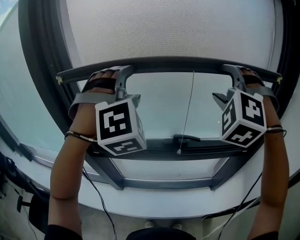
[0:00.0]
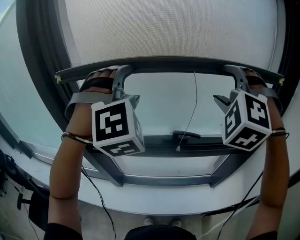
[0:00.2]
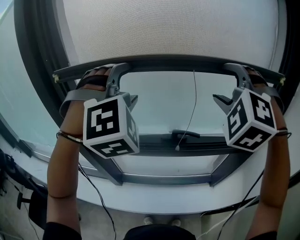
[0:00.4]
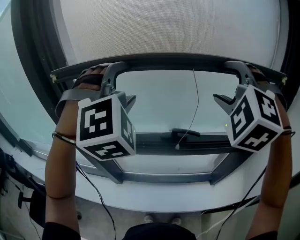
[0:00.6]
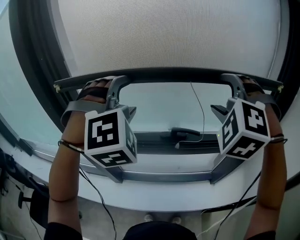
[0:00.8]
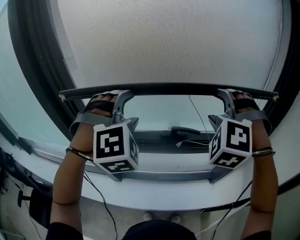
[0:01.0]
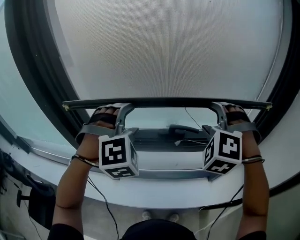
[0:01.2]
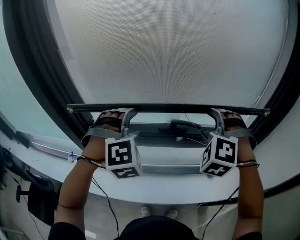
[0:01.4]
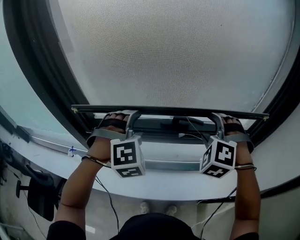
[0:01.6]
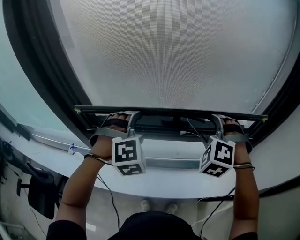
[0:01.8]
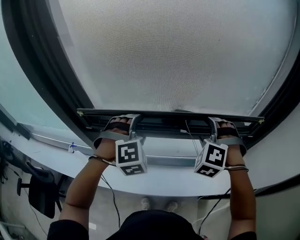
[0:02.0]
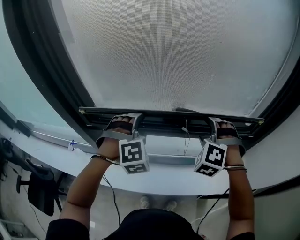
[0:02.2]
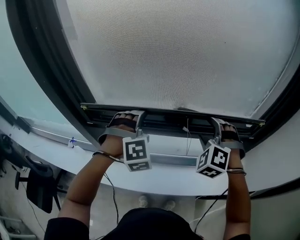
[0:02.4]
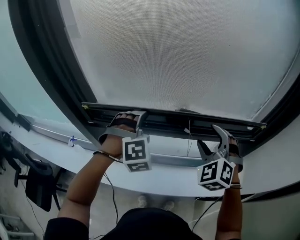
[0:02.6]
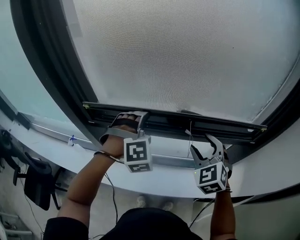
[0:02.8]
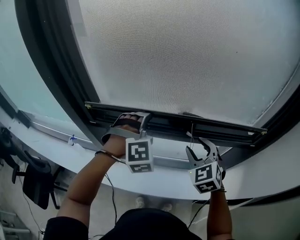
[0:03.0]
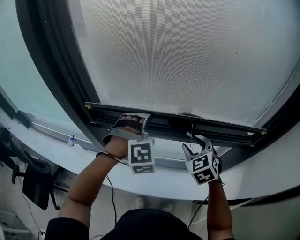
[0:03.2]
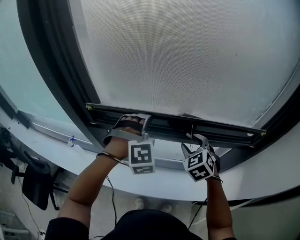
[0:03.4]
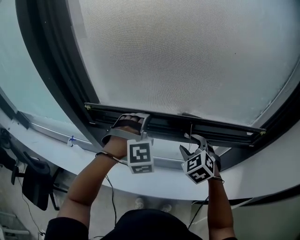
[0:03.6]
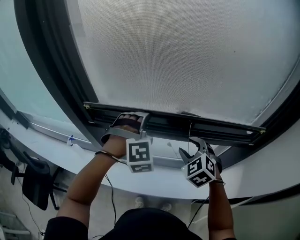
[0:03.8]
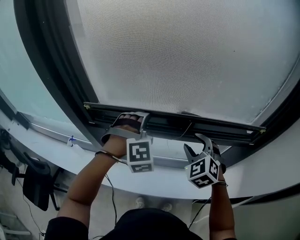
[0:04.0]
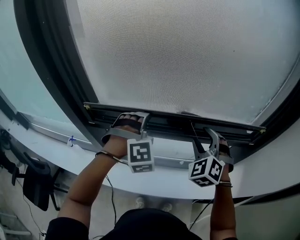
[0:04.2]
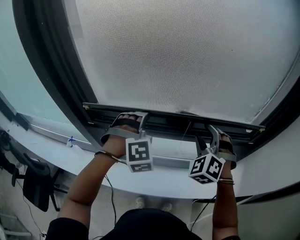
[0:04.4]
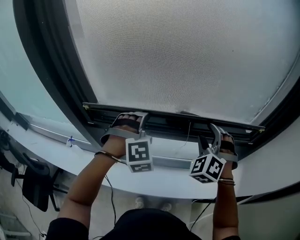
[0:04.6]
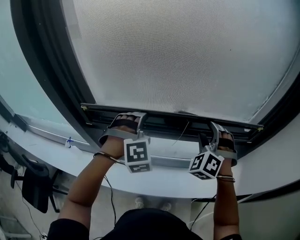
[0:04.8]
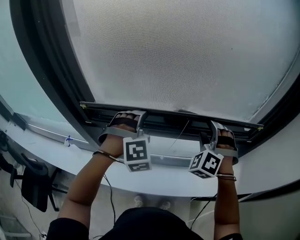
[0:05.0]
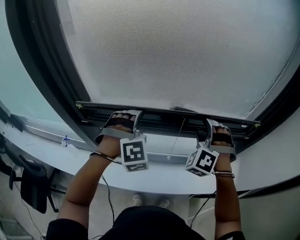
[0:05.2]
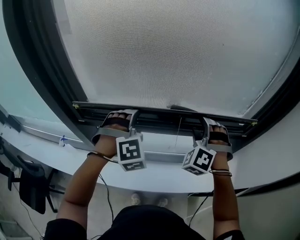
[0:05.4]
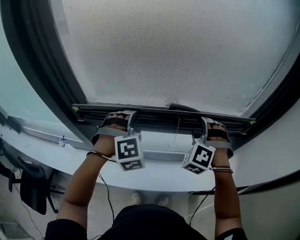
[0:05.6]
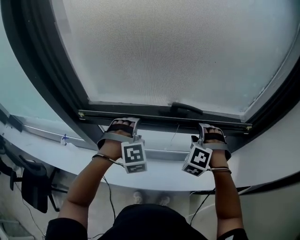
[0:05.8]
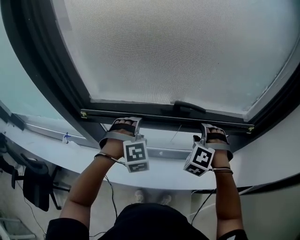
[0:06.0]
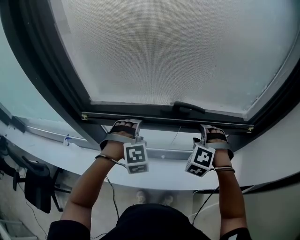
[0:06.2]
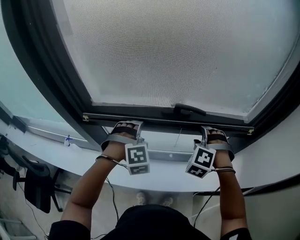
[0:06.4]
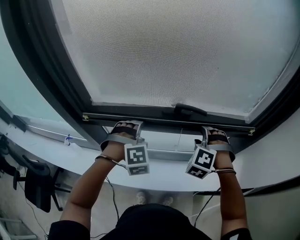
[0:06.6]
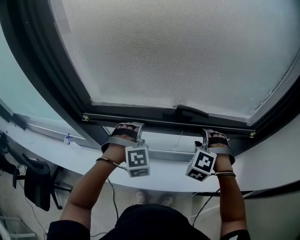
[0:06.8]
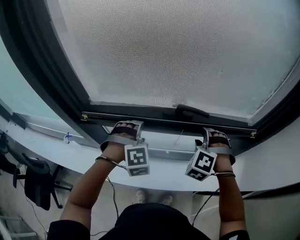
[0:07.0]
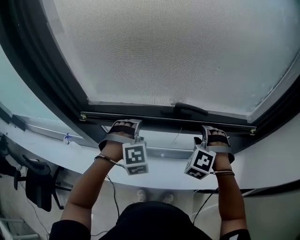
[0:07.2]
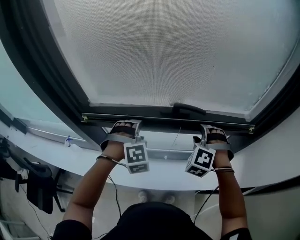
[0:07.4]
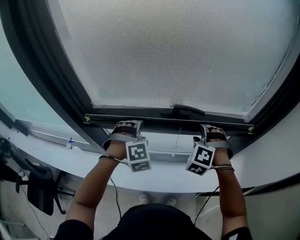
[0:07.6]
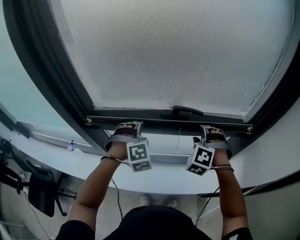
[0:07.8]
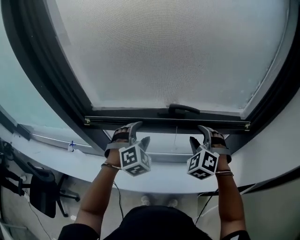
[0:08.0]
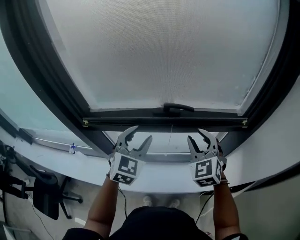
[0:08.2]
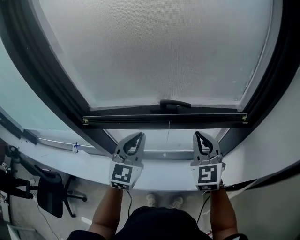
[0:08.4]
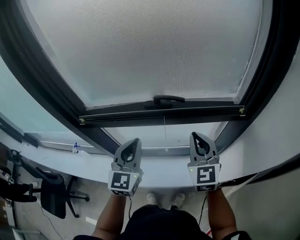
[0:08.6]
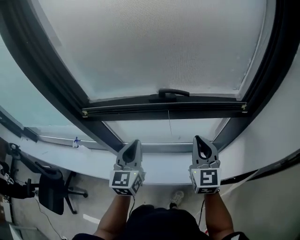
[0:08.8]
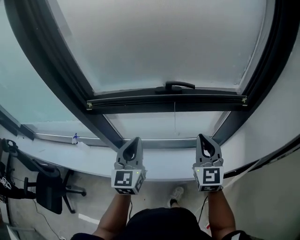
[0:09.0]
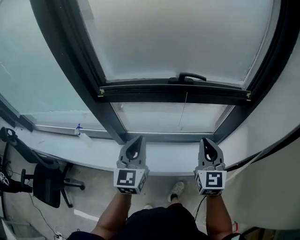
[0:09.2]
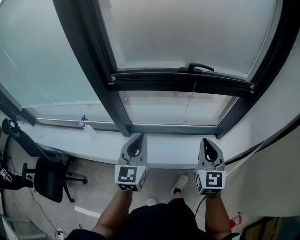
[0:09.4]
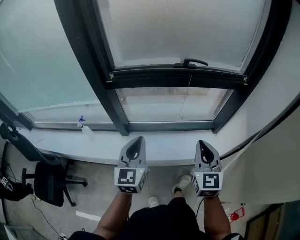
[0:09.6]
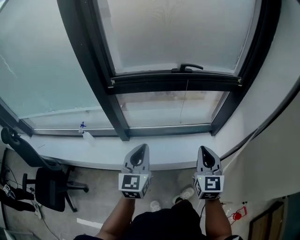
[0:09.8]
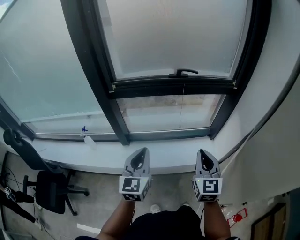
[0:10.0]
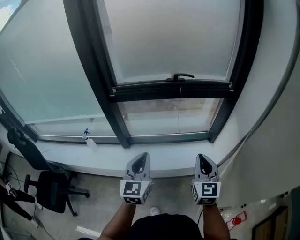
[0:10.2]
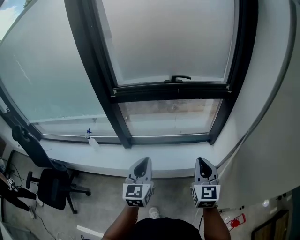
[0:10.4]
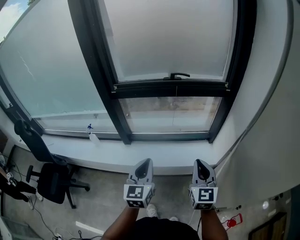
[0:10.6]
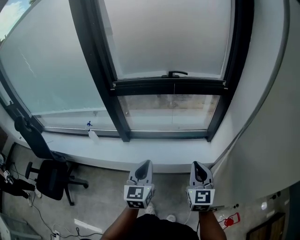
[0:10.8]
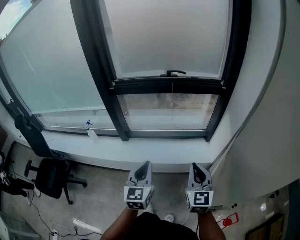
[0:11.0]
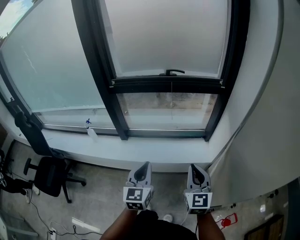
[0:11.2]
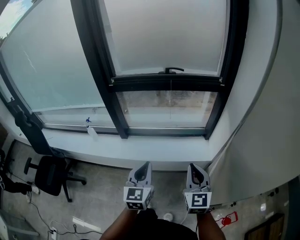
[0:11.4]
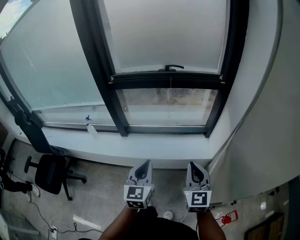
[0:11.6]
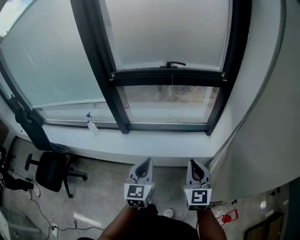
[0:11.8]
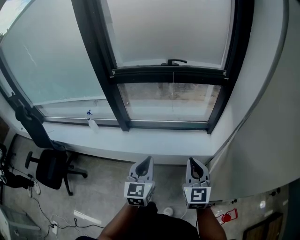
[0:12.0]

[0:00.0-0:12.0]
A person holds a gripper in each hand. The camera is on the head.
0:00.0 to 0:01.6: The grippers both shift downward by approximately 30 cm. The left gripper swivels approximately 30 degrees; the right gripper changes its angle by about 20 degrees.
0:01.6 to 0:03.0: The right gripper travels to the left by about 5 cm, and changes its angle by some 40 degrees.
0:03.0 to 0:04.4: The right gripper moves approximately 5 cm, and changes its angle by roughly 30 degrees.
0:04.4 to 0:06.0: Both grippers travel together downward, some 10 cm. The right gripper swivels roughly 20 degrees.
0:06.0 to 0:07.6: There are only small adjustments of the grippers.
0:07.6 to 0:09.0: Both grippers travel together backward, some 15 cm. The right gripper rotates around the line of its fingers by roughly 60 degrees, clockwise from behind, and closes its fingers, while the left gripper rotates around the line of its fingers by about 70 degrees, counterclockwise from behind, and closes its fingers.
0:09.0 to 0:10.4: The two grippers go approximately 30 cm backward.
0:10.4 to 0:12.0: The left gripper moves backward and to the right, about 10 cm, while the right gripper goes about 10 cm backward.

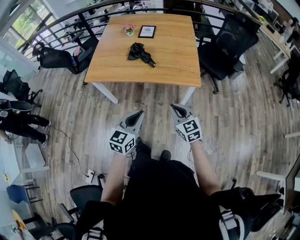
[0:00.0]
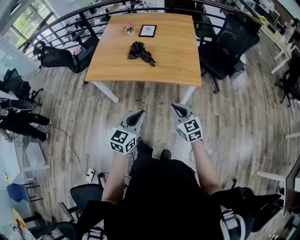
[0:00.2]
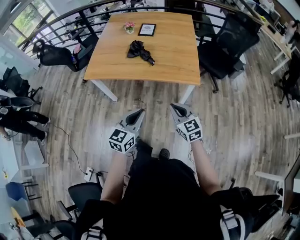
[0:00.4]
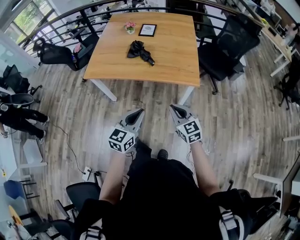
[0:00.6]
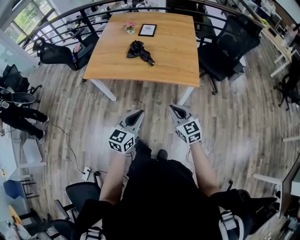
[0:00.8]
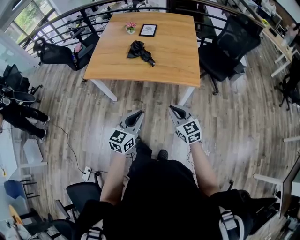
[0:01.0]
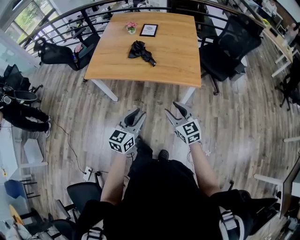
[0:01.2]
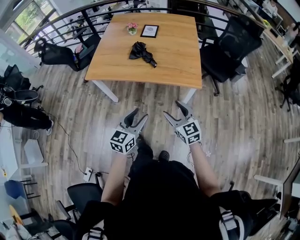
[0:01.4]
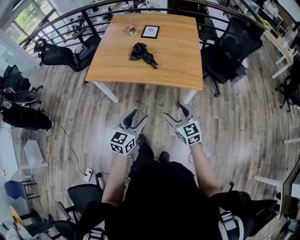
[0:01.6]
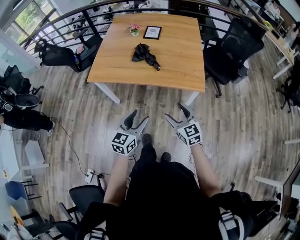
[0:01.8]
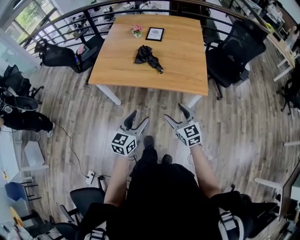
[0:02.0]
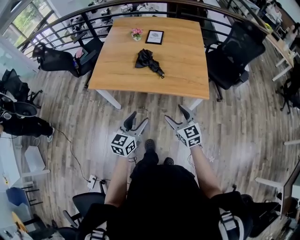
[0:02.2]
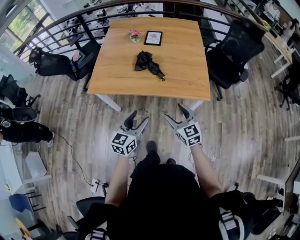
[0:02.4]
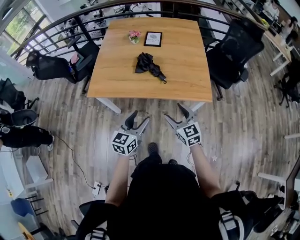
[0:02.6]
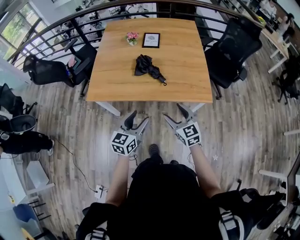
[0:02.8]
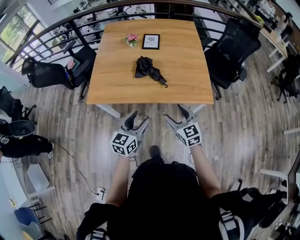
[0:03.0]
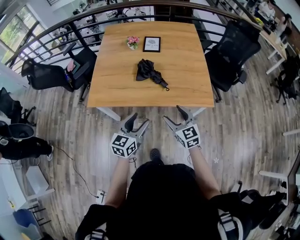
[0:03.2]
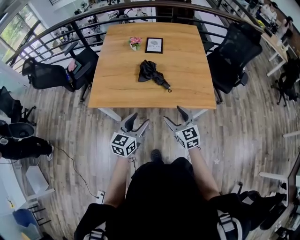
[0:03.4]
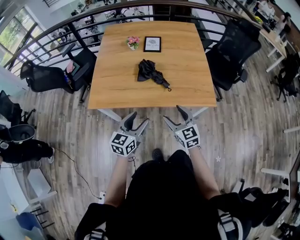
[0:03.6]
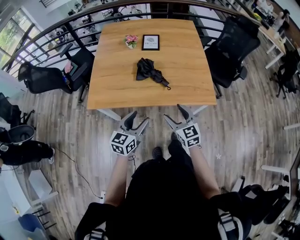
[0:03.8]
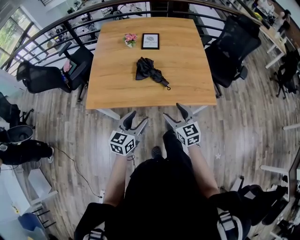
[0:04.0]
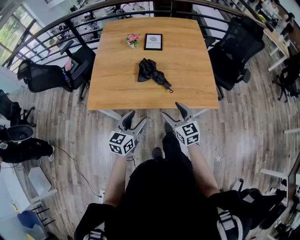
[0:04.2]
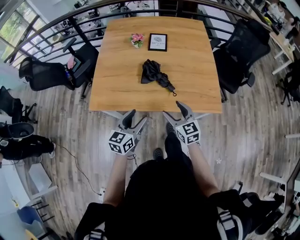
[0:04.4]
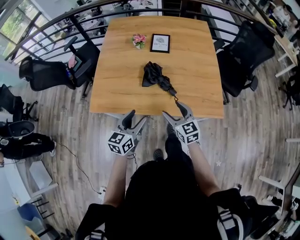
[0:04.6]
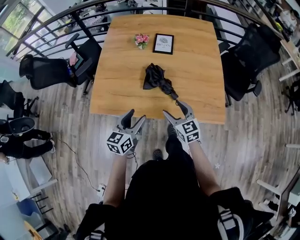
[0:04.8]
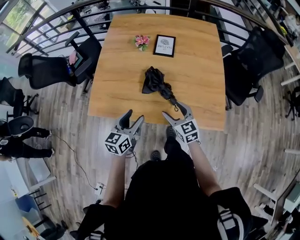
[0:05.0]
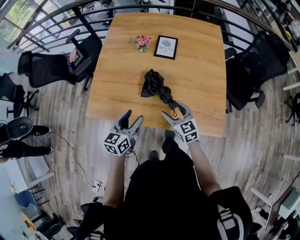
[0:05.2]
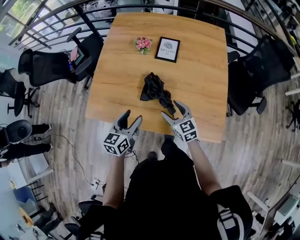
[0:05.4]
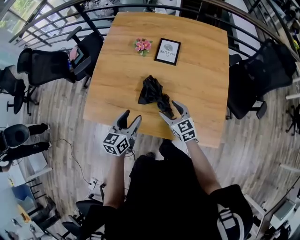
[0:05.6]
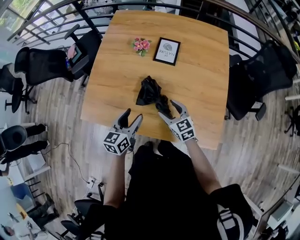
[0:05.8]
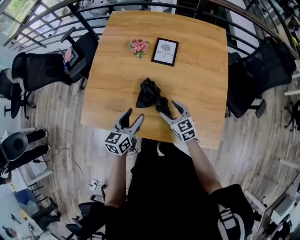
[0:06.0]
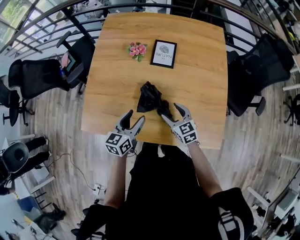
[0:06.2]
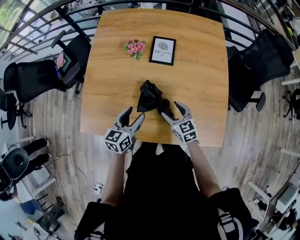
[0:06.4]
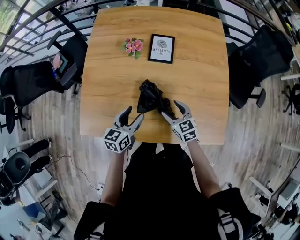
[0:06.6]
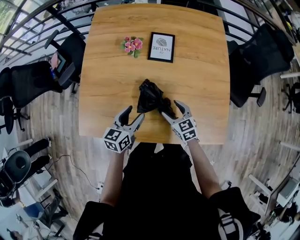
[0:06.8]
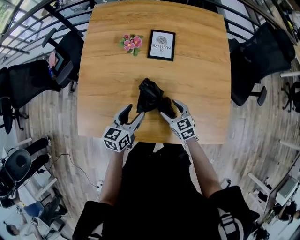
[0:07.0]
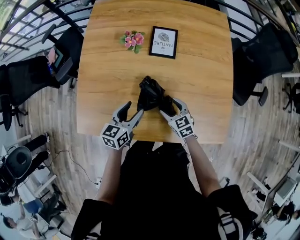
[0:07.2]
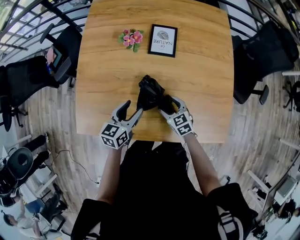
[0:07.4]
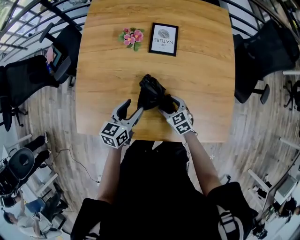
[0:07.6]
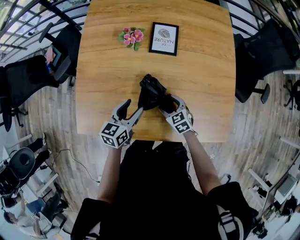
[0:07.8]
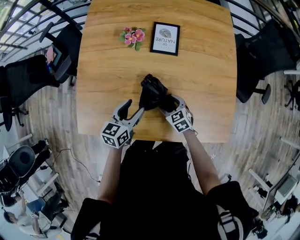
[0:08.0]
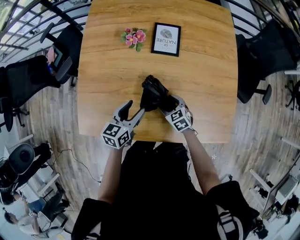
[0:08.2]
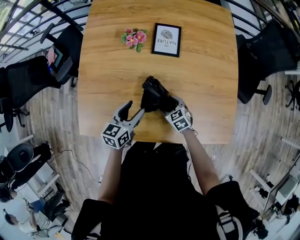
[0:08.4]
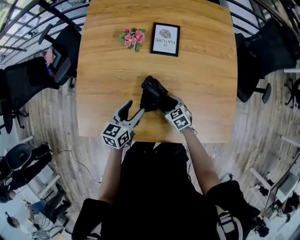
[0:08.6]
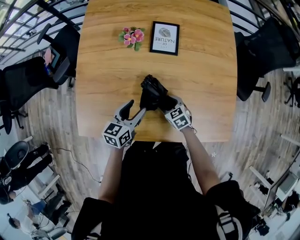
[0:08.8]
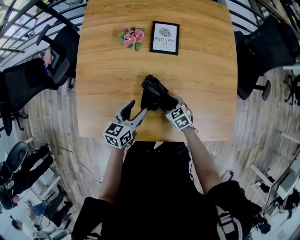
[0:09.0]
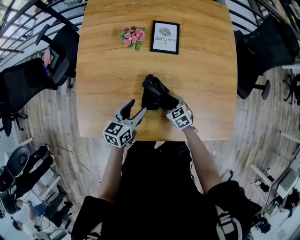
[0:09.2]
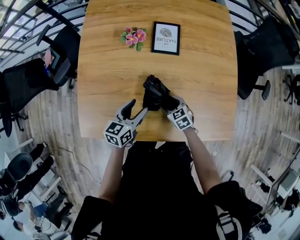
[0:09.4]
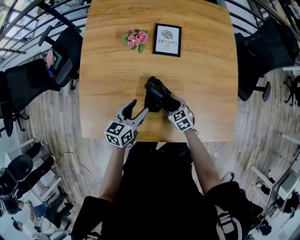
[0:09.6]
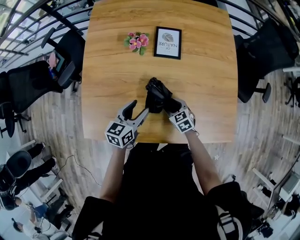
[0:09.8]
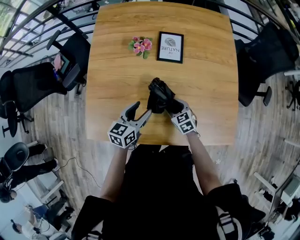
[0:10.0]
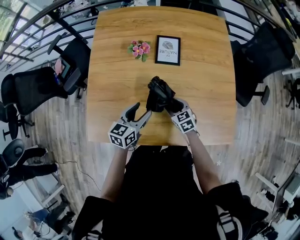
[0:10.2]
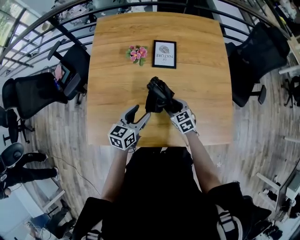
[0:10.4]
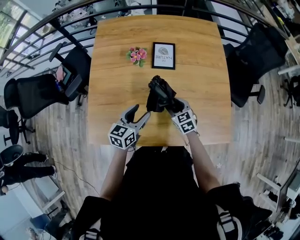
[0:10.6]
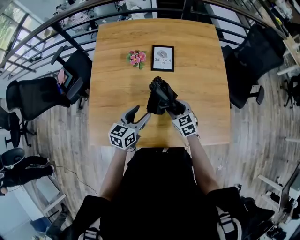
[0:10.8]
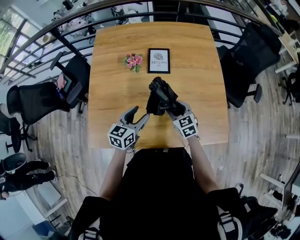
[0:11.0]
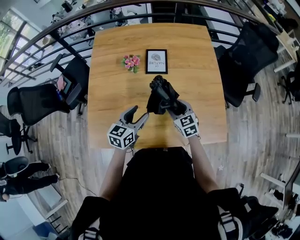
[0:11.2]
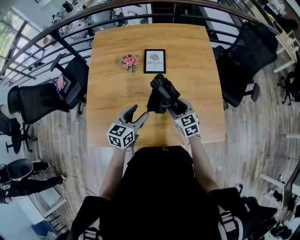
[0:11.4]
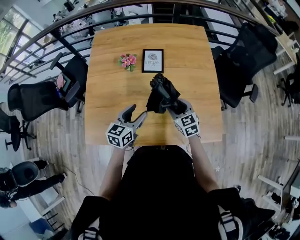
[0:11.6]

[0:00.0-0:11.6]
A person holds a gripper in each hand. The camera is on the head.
0:00.0 to 0:01.4: The left gripper opens up. The right gripper opens up.
0:01.4 to 0:02.8: Both grippers travel together forward and to the left, roughly 20 cm.
0:02.8 to 0:04.4: Both grippers move forward and to the left, about 10 cm.
0:04.4 to 0:05.8: Both grippers move forward, some 20 cm.
0:05.8 to 0:07.2: The left gripper is displaced forward and downward by about 10 cm; the right gripper moves downward, some 10 cm.
0:07.2 to 0:08.8: The right gripper heads downward, covering approximately 5 cm.
0:08.8 to 0:10.2: The right gripper travels upward by roughly 5 cm.
0:10.2 to 0:11.6: The right gripper is displaced upward and to the right by approximately 15 cm; the left gripper goes about 10 cm upward and to the right.
